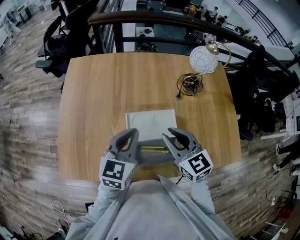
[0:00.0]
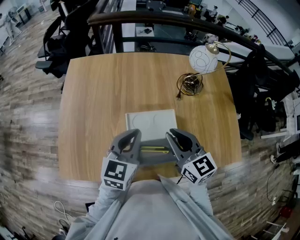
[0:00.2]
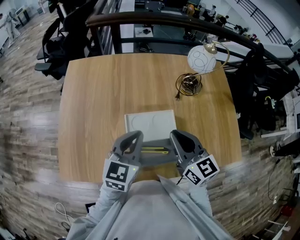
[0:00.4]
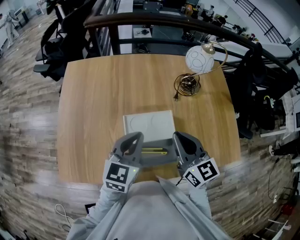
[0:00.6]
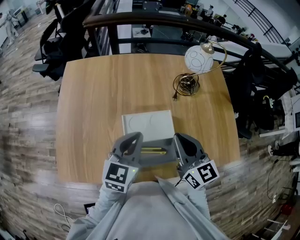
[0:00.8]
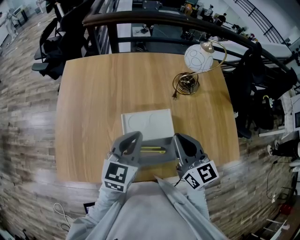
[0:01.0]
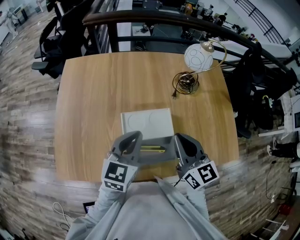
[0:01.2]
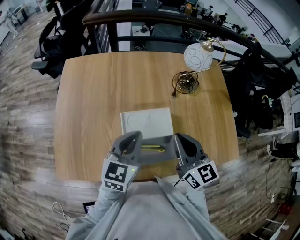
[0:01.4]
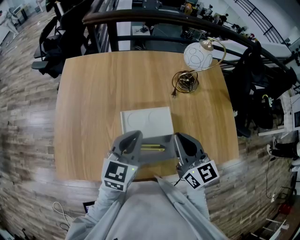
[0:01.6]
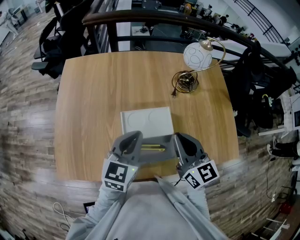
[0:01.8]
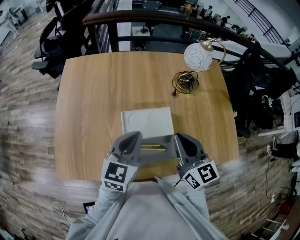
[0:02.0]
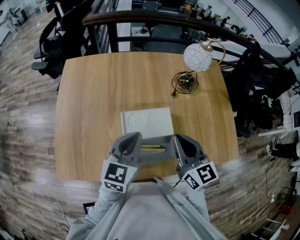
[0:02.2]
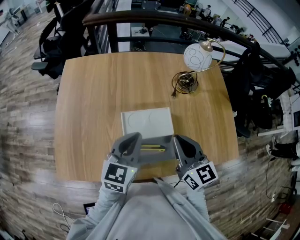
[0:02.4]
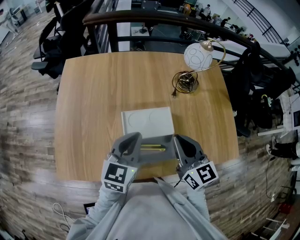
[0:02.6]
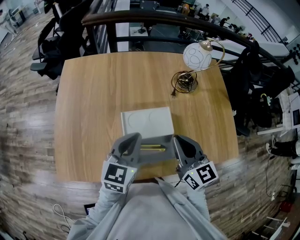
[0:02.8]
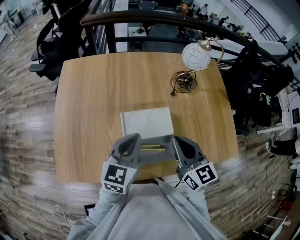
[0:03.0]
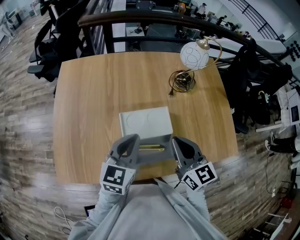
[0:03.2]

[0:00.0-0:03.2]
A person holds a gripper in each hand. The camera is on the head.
0:00.0 to 0:01.6: The right gripper ends up roughly 5 cm from where it was, and closes.
0:01.6 to 0:03.2: There are only small adjustments of the grippers.

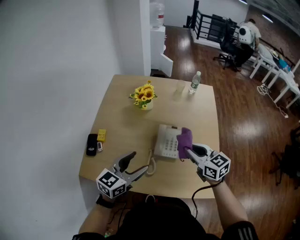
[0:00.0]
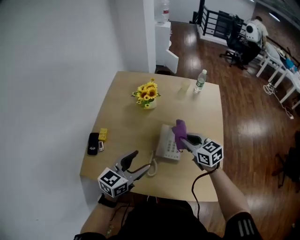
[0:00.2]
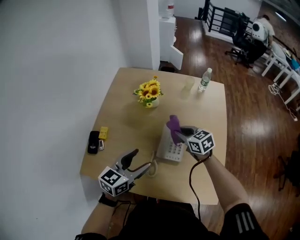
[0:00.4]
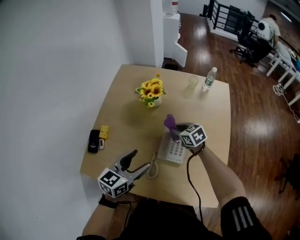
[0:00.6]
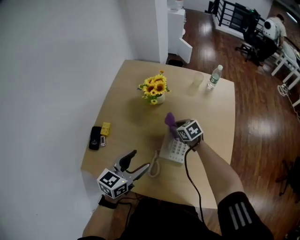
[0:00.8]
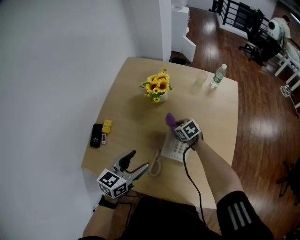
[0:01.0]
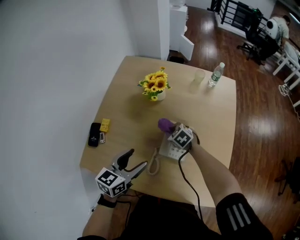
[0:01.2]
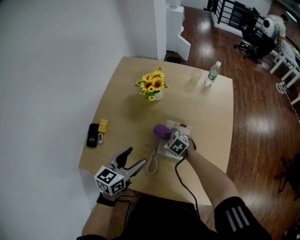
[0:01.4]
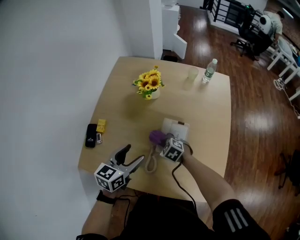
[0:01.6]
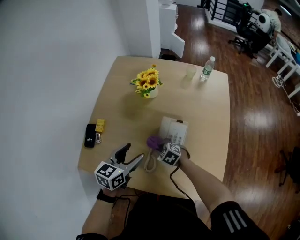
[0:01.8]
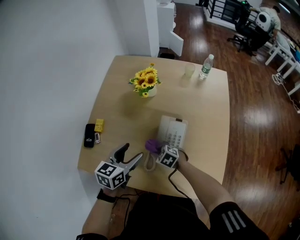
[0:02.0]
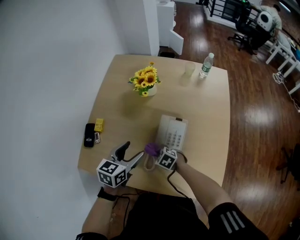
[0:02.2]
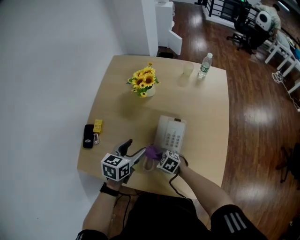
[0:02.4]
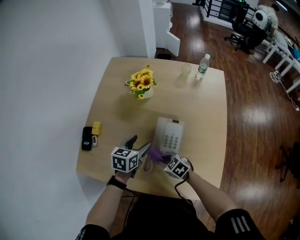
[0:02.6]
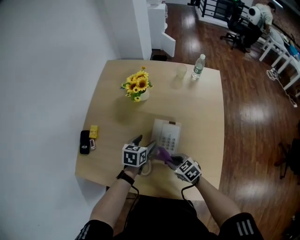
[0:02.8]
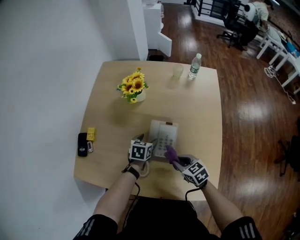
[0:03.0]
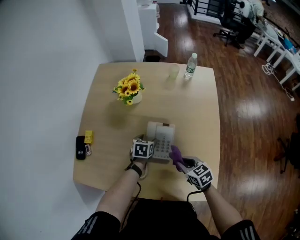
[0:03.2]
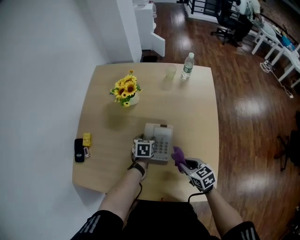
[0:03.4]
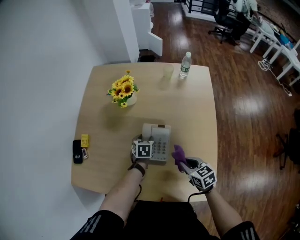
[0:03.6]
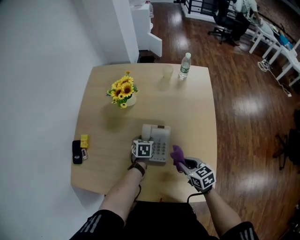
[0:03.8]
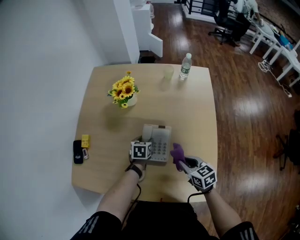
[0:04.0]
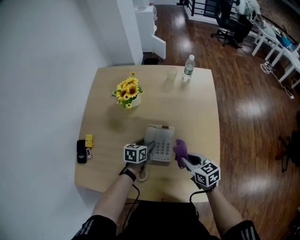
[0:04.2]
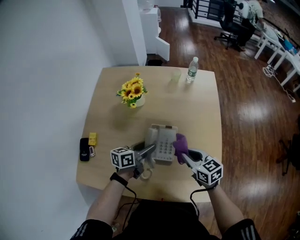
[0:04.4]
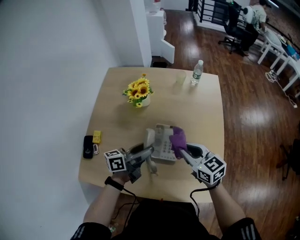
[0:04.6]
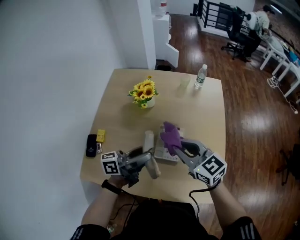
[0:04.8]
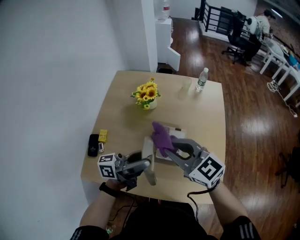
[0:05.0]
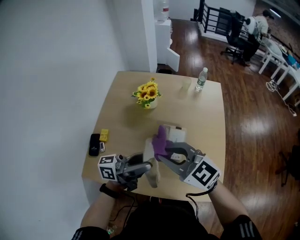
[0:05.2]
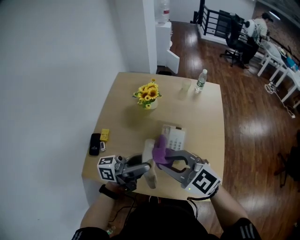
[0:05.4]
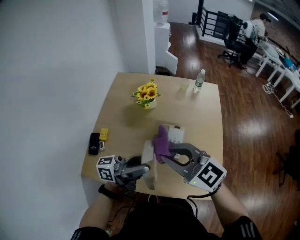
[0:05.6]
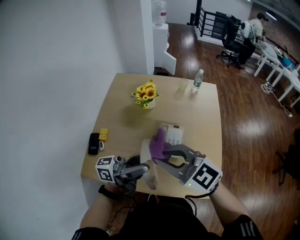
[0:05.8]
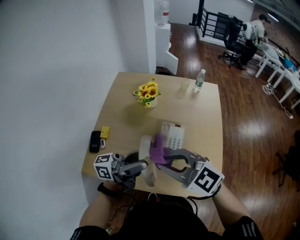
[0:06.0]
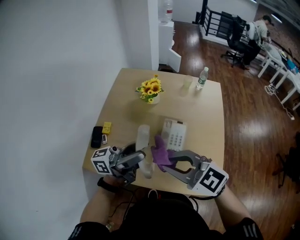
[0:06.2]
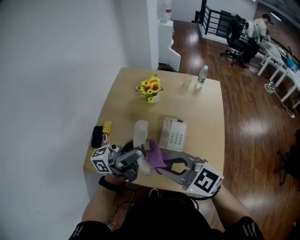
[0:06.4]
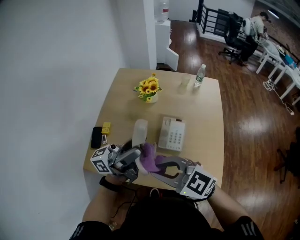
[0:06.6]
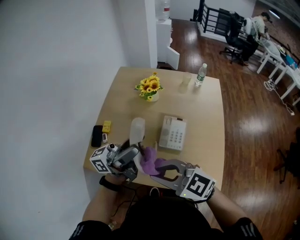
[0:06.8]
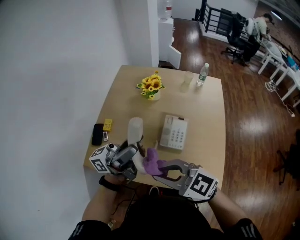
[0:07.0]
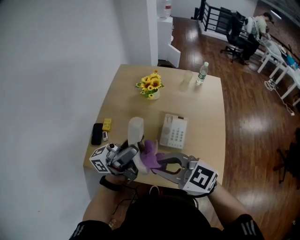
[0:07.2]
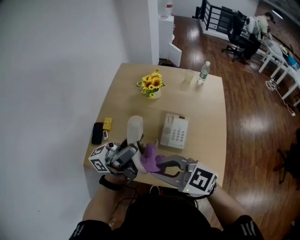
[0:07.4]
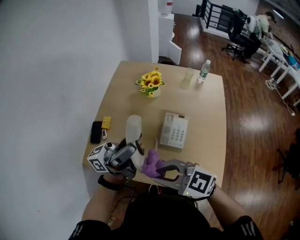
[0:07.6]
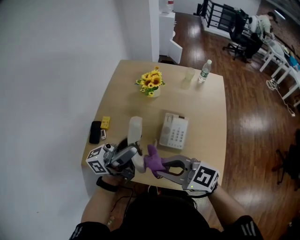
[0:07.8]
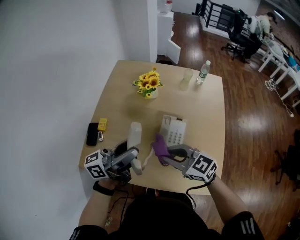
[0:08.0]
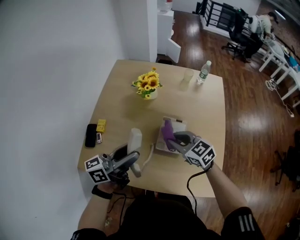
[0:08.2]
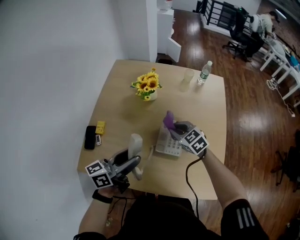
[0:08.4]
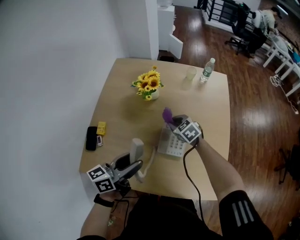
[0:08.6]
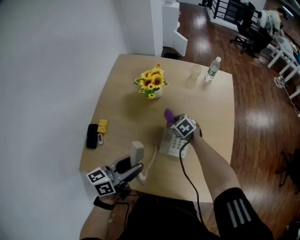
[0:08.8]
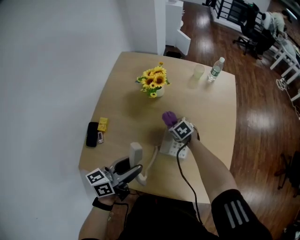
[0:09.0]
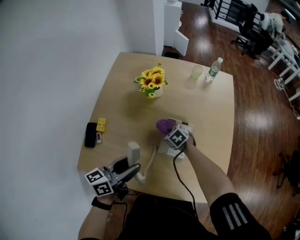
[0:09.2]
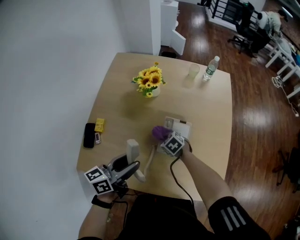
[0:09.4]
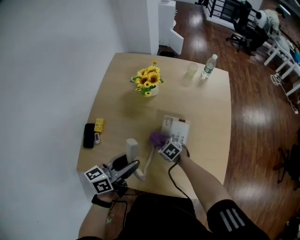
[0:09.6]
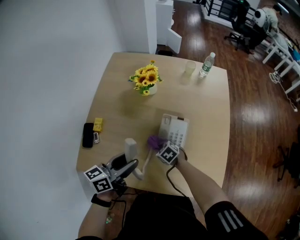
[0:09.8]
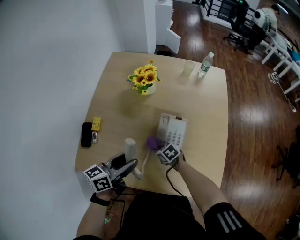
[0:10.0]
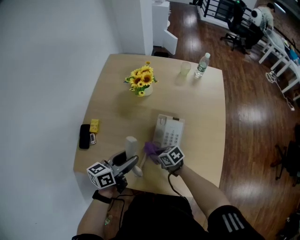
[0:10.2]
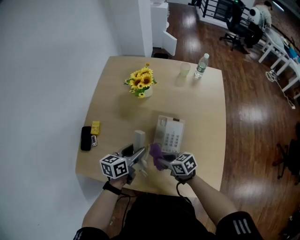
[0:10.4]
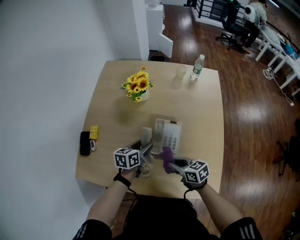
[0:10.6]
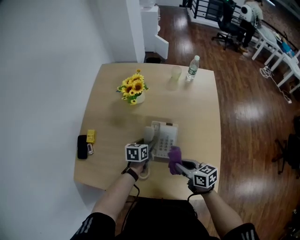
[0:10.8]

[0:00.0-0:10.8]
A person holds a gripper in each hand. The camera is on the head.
0:00.0 to 0:01.6: The right gripper shifts roughly 25 cm downward and to the left, and tilts its fingers roughly 40 degrees downward; the left gripper travels forward and downward by some 10 cm.
0:01.6 to 0:03.0: The right gripper shifts some 15 cm backward and to the right, and swivels about 30 degrees. Meanwhile the left gripper travels downward, to the right and forward by roughly 20 cm, and turns by approximately 30 degrees.
0:03.0 to 0:04.6: Both grippers move upward, approximately 15 cm. The right gripper turns by approximately 20 degrees, while the left gripper angles its fingers upward, by about 50 degrees.
0:04.6 to 0:06.2: The right gripper ends up about 25 cm from where it was, and changes its angle by about 40 degrees. Meanwhile the left gripper shifts about 20 cm upward, and tips its fingers upward by about 30 degrees.
0:06.2 to 0:07.8: The right gripper goes about 5 cm downward.
0:07.8 to 0:09.2: The left gripper shifts some 15 cm downward, and tilts its fingers approximately 40 degrees downward. Meanwhile the right gripper shifts roughly 30 cm downward, and points its fingers some 50 degrees further downward.
0:09.2 to 0:10.8: The left gripper shifts roughly 25 cm downward, to the right and forward, and points its fingers about 30 degrees further downward, while the right gripper shifts roughly 25 cm backward, upward and to the right, and angles its fingers upward, by roughly 30 degrees.

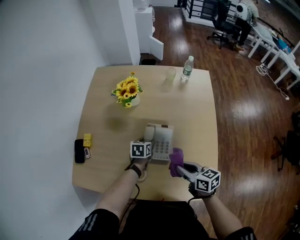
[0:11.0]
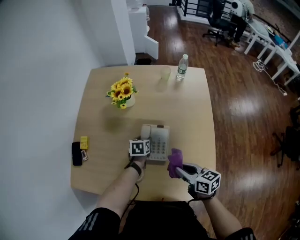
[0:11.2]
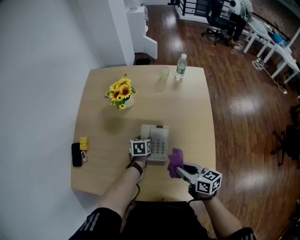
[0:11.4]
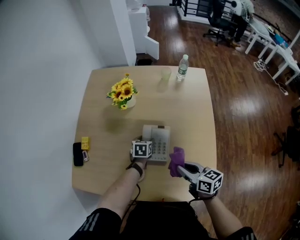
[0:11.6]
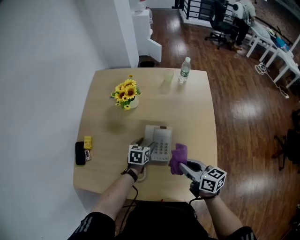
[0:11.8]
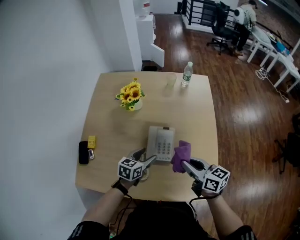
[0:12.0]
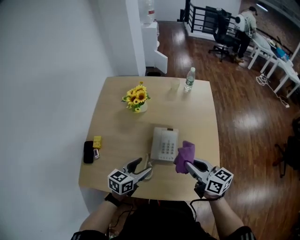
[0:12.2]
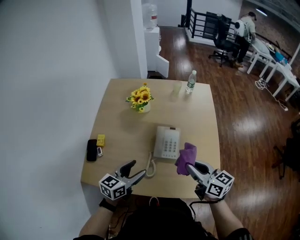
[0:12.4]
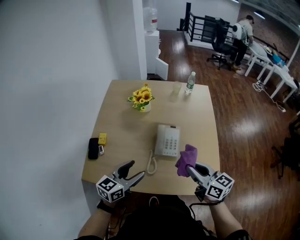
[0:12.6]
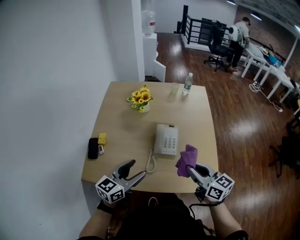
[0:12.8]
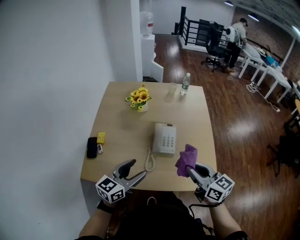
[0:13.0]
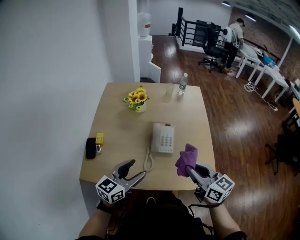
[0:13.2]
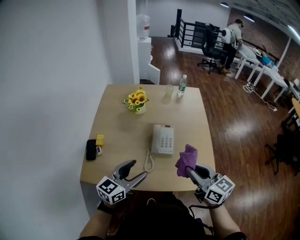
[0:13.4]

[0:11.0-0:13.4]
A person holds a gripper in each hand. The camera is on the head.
0:11.0 to 0:12.2: The right gripper travels upward by roughly 10 cm; the left gripper travels upward and backward by roughly 25 cm, and turns by roughly 30 degrees.
0:12.2 to 0:13.4: Both grippers travel together backward and upward, approximately 15 cm.

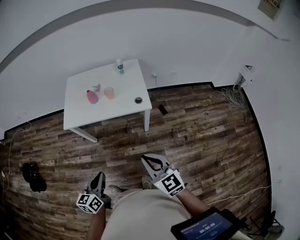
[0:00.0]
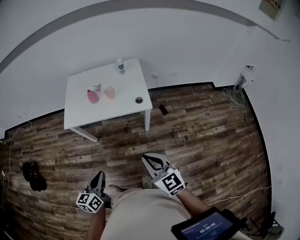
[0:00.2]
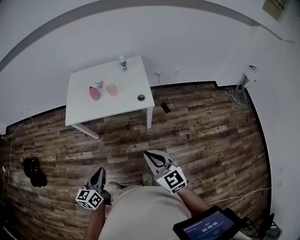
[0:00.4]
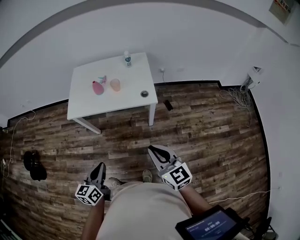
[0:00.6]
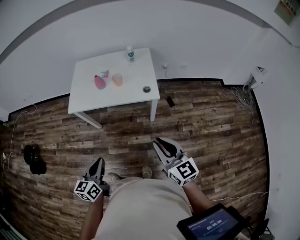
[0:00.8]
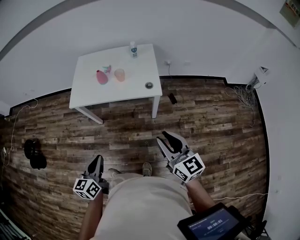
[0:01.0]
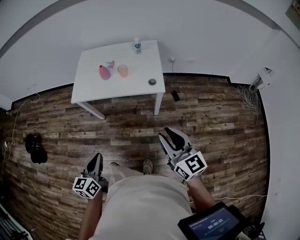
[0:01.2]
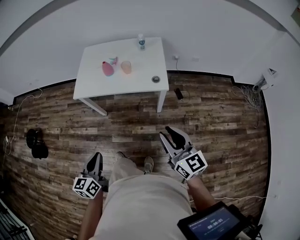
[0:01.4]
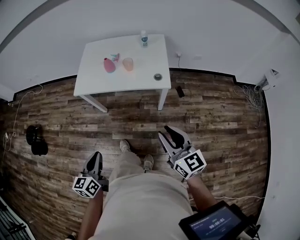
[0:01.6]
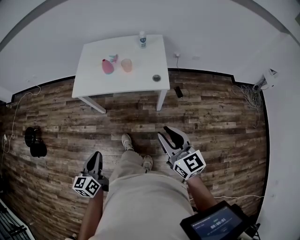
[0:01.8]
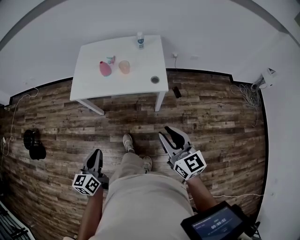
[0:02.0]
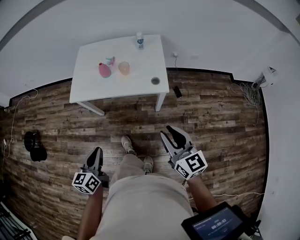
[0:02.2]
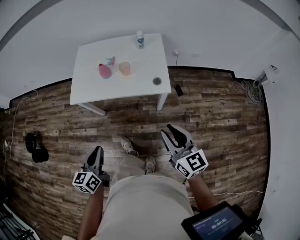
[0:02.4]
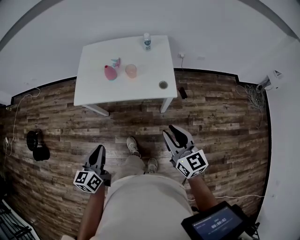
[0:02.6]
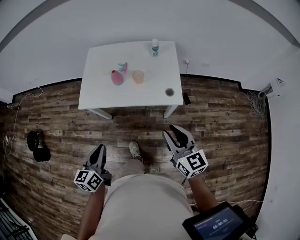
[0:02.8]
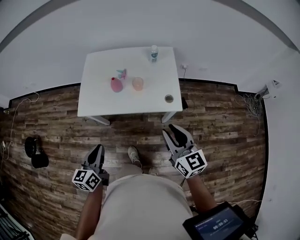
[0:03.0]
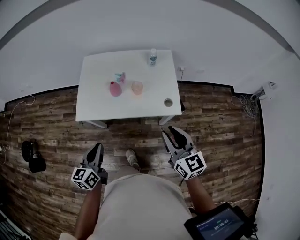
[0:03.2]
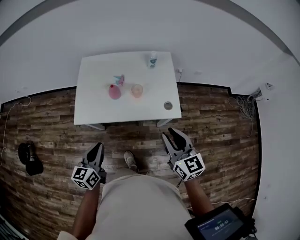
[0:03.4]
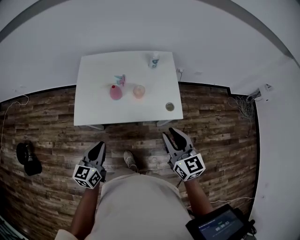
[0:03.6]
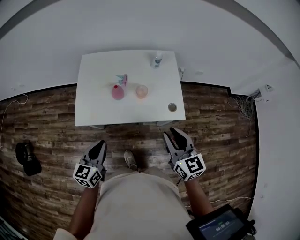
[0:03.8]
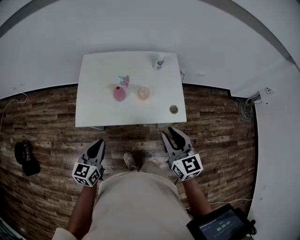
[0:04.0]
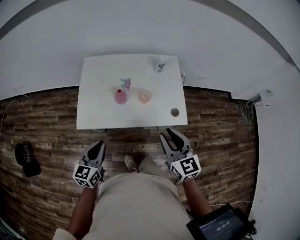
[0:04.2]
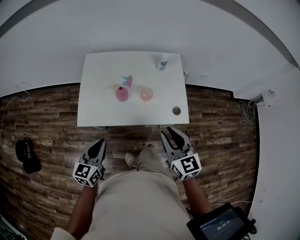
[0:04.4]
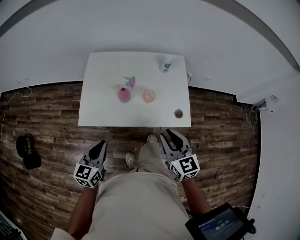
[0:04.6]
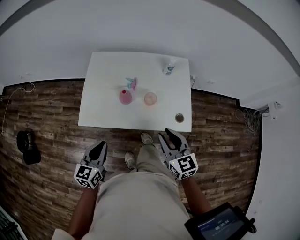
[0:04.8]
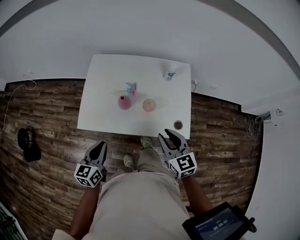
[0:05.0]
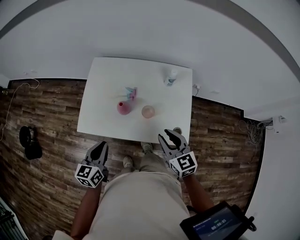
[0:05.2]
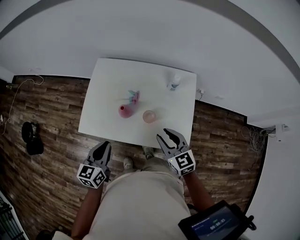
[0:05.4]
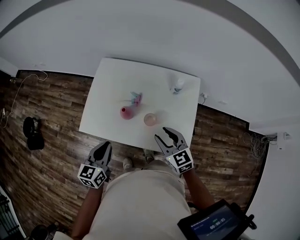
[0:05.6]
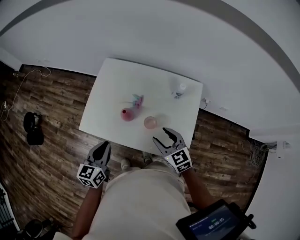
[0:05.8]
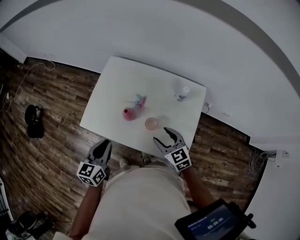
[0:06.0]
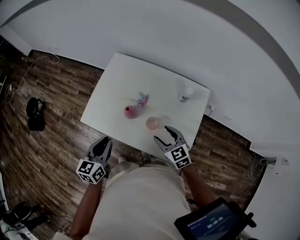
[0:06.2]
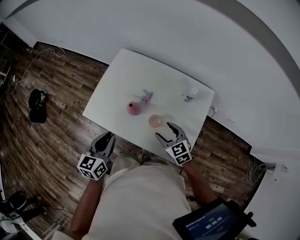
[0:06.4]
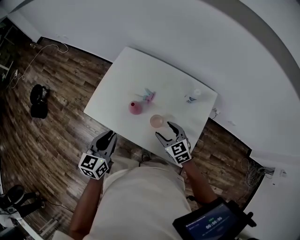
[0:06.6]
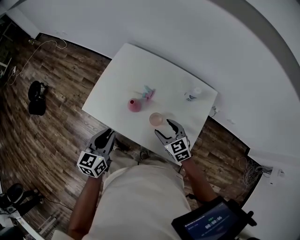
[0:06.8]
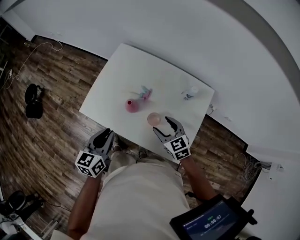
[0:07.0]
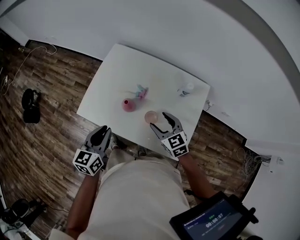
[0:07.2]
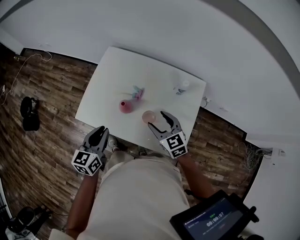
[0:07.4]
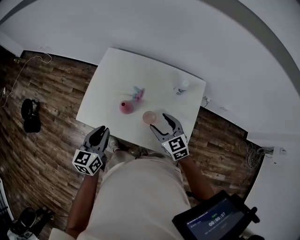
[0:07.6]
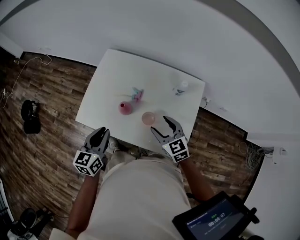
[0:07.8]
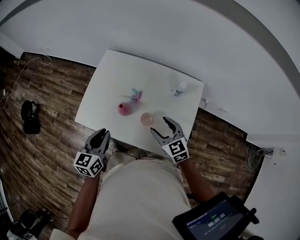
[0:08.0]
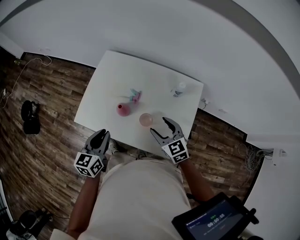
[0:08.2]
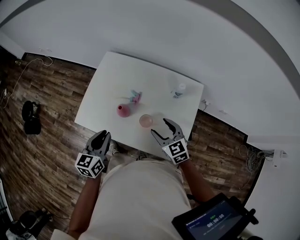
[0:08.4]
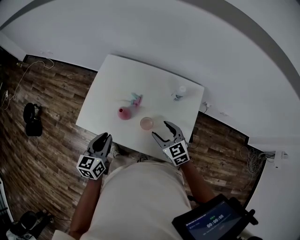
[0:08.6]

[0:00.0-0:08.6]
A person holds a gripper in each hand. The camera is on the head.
0:00.0 to 0:01.4: The right gripper shifts about 5 cm to the right.
0:01.4 to 0:02.8: Both grippers move forward, approximately 15 cm.
0:02.8 to 0:04.4: The grippers both shift forward and to the left by roughly 20 cm.
0:04.4 to 0:05.8: The left gripper travels forward and to the right by about 15 cm, and swivels about 20 degrees. Meanwhile the right gripper goes roughly 25 cm forward and downward, and rotates some 30 degrees.
0:05.8 to 0:07.2: The right gripper changes place by some 5 cm.
0:07.2 to 0:08.6: The grippers make only small movements.
